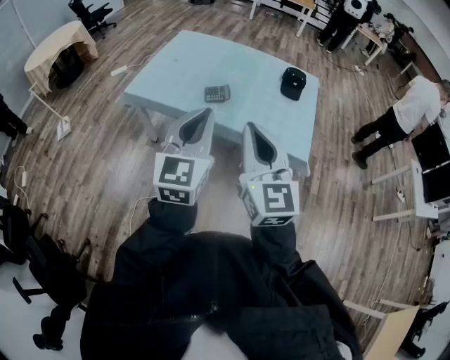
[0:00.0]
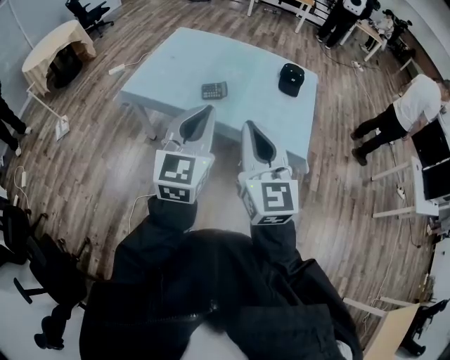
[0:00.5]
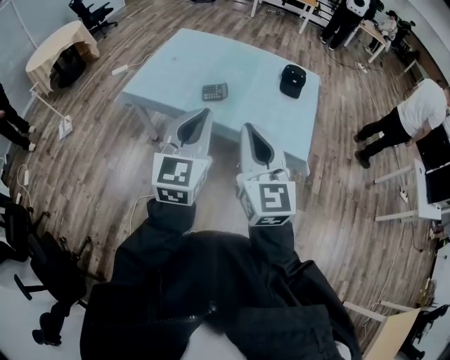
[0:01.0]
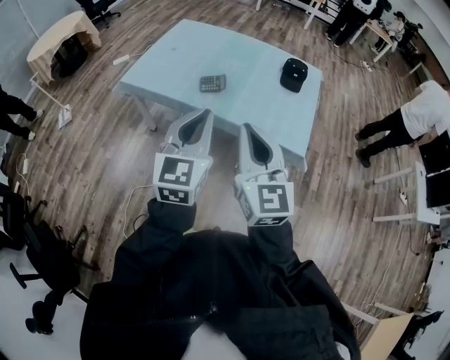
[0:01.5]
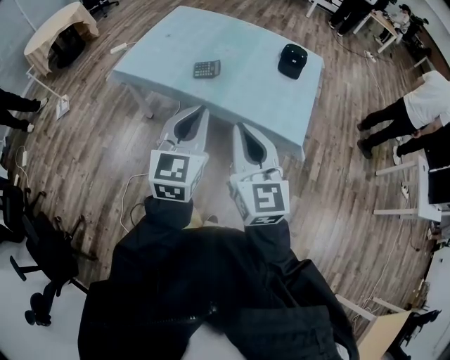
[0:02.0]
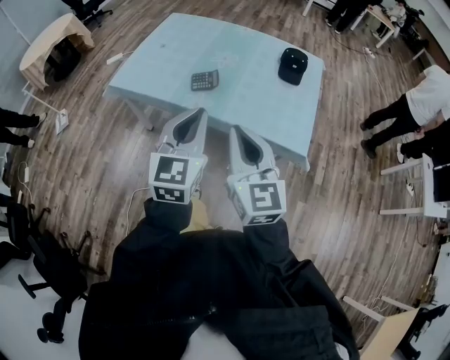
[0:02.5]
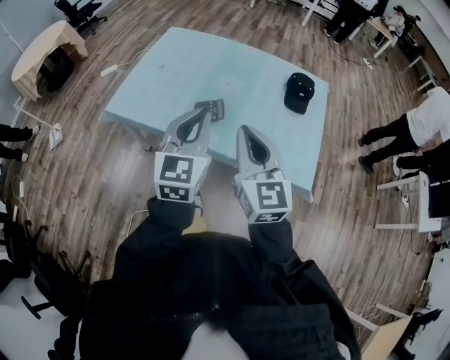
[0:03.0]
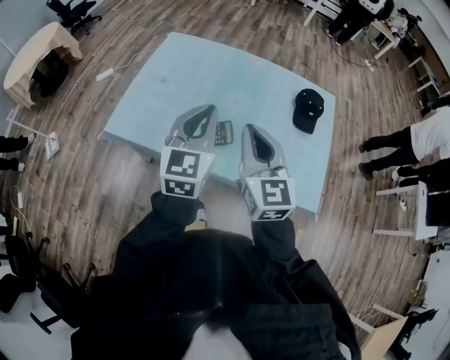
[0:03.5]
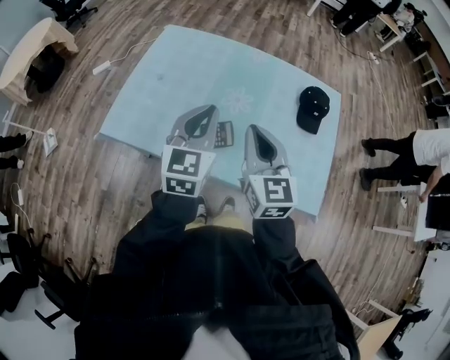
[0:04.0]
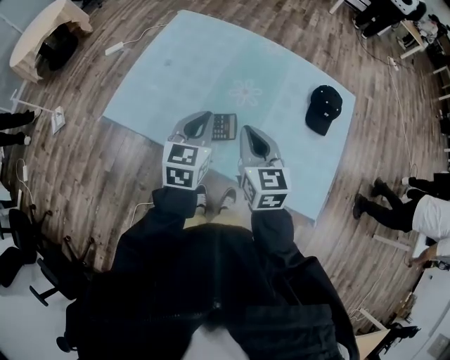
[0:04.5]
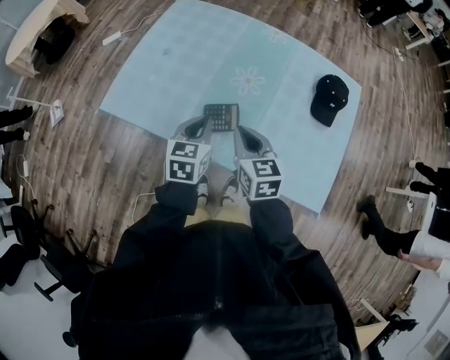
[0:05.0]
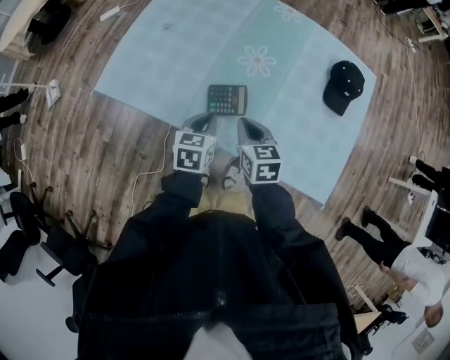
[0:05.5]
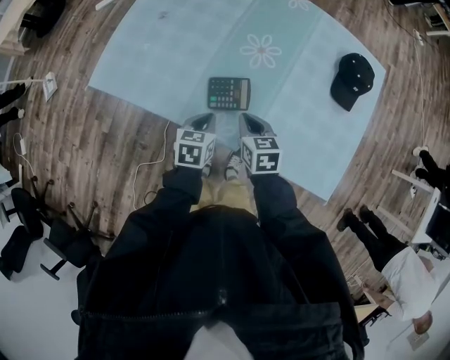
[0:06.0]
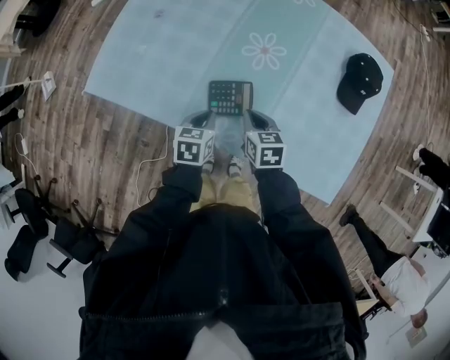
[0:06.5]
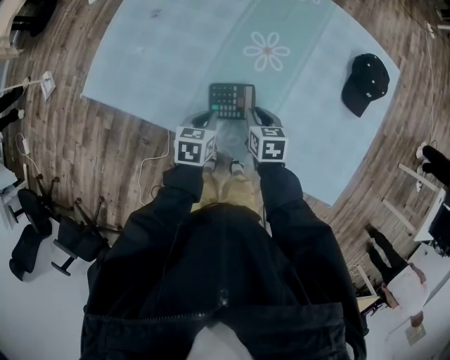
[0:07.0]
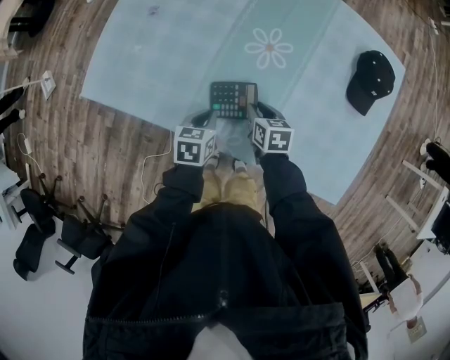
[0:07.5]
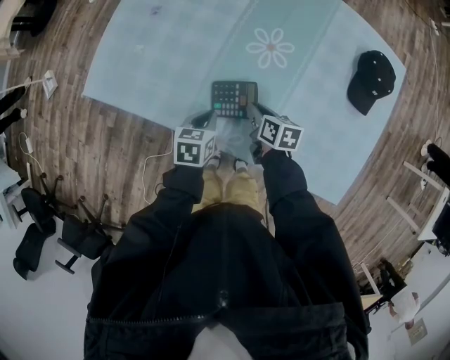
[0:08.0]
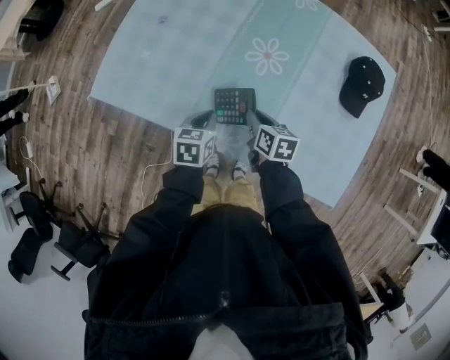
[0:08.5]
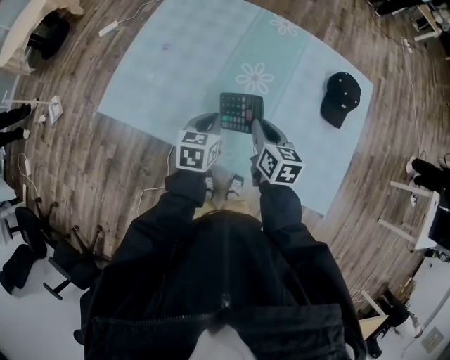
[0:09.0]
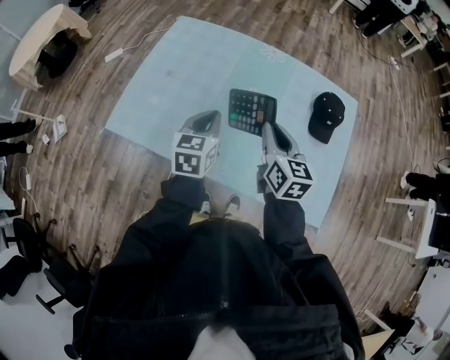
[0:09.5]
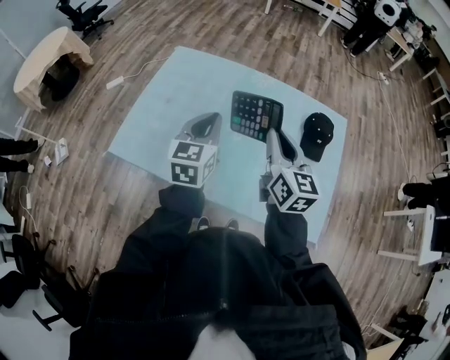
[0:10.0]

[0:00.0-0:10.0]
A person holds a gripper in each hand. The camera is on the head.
0:00.0 to 0:02.0: The grippers both shift to the right and downward by roughly 10 cm.
0:02.0 to 0:04.0: The pair of grippers is taken forward, about 40 cm.
0:04.0 to 0:06.0: Both grippers travel together downward, some 30 cm. The right gripper angles its fingers downward, by roughly 30 degrees. Meanwhile the left gripper tips its fingers downward by roughly 40 degrees.
0:06.0 to 0:08.0: The left gripper moves some 5 cm; the right gripper goes some 10 cm downward and forward, and swivels some 30 degrees.
0:08.0 to 0:10.0: Both grippers travel together upward, about 40 cm. The right gripper points its fingers about 40 degrees further upward. The left gripper angles its fingers upward, by about 40 degrees.

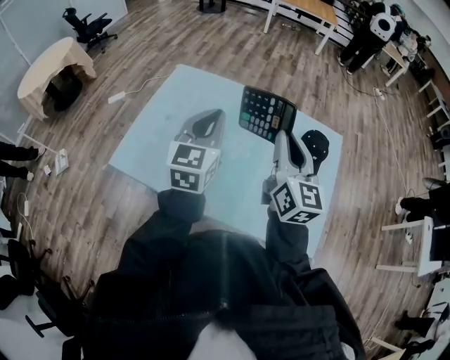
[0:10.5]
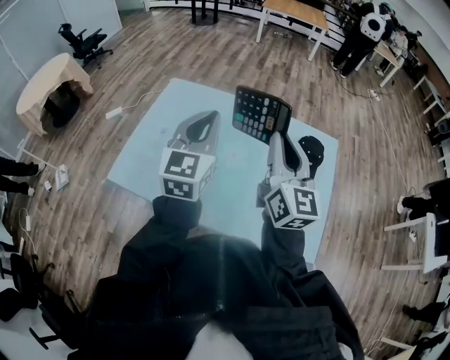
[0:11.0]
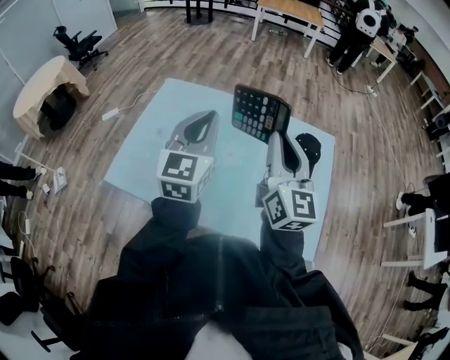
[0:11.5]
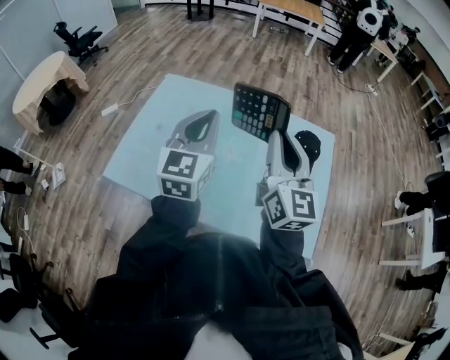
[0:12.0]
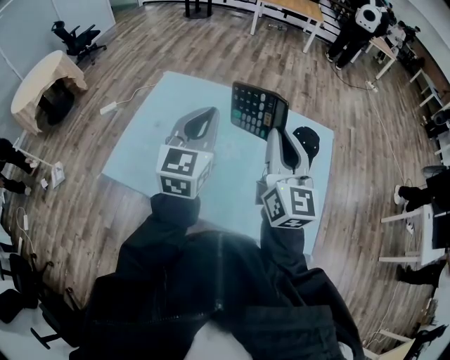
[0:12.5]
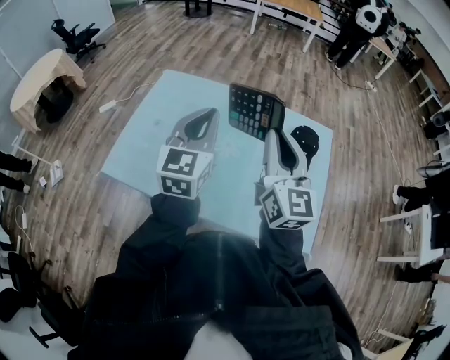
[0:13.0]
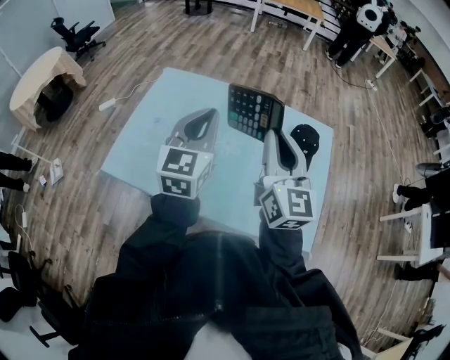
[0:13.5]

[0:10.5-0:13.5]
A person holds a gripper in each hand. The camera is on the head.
0:10.5 to 0:13.5: The grippers stay close to where they were, moving slightly.

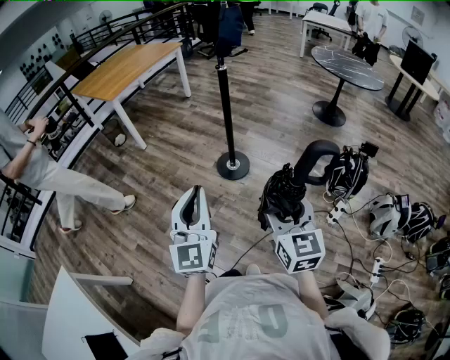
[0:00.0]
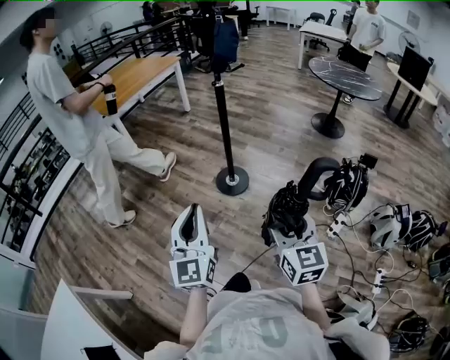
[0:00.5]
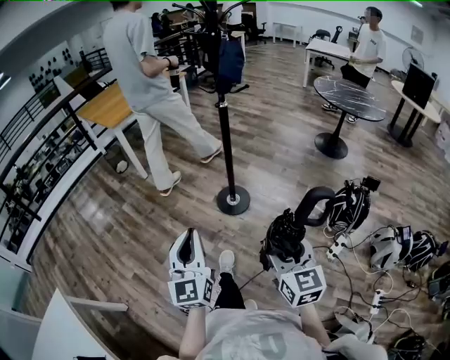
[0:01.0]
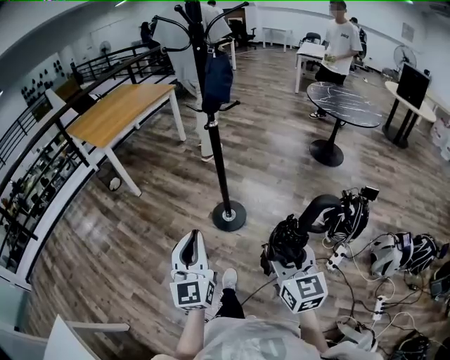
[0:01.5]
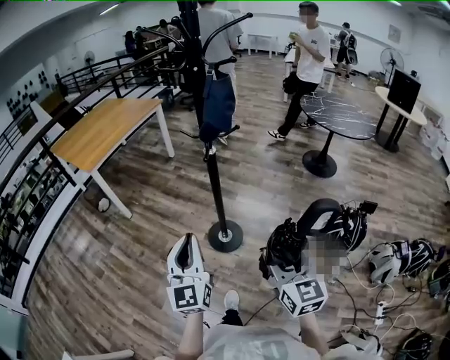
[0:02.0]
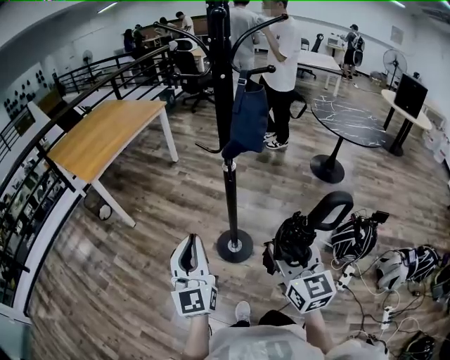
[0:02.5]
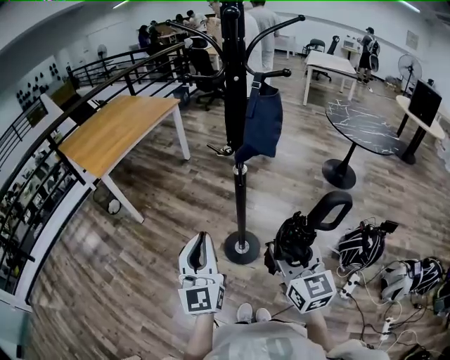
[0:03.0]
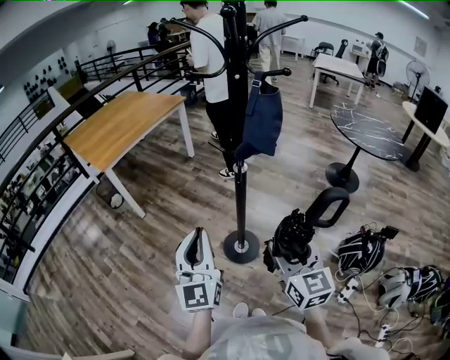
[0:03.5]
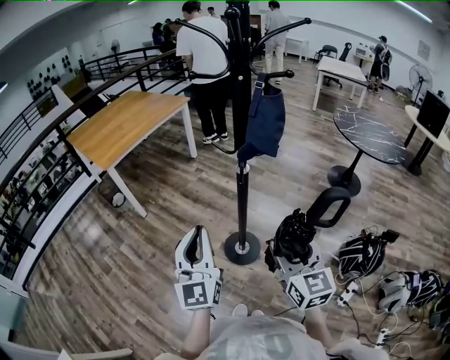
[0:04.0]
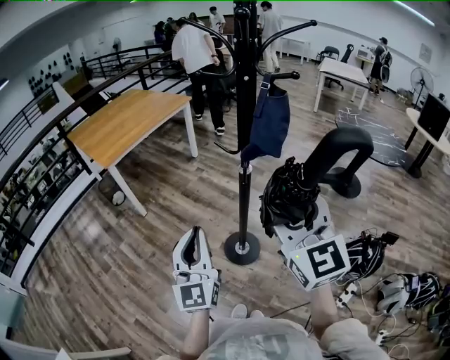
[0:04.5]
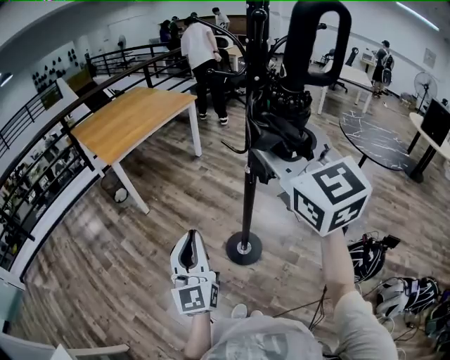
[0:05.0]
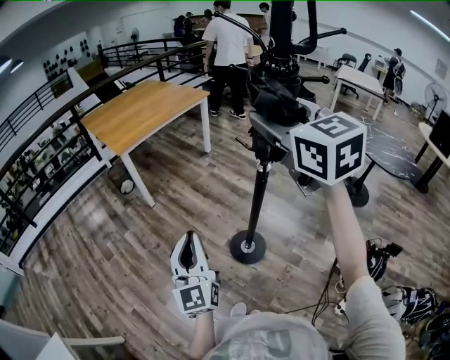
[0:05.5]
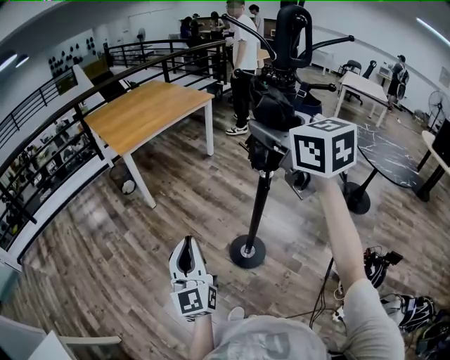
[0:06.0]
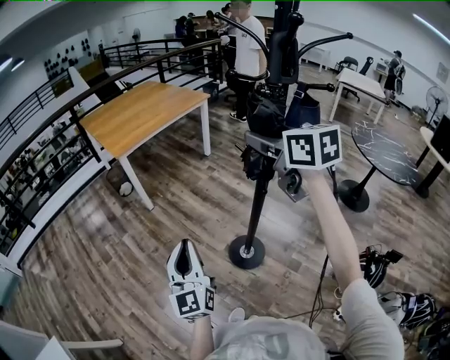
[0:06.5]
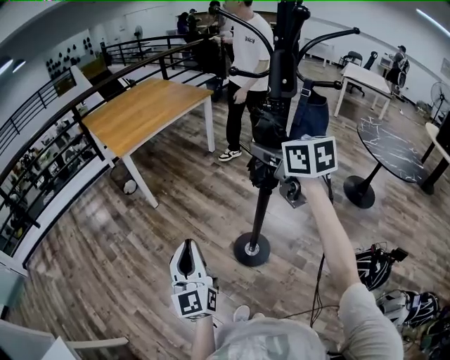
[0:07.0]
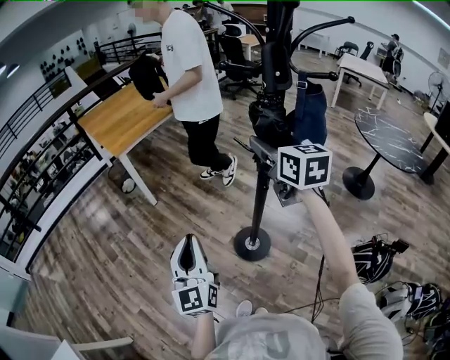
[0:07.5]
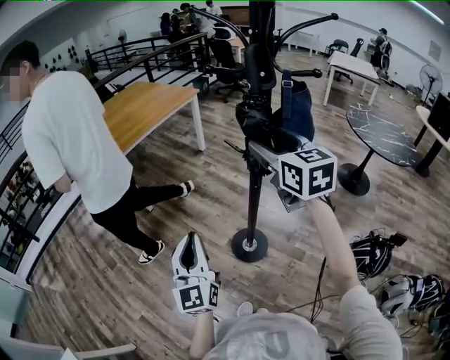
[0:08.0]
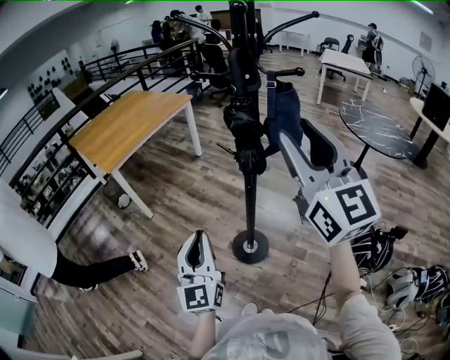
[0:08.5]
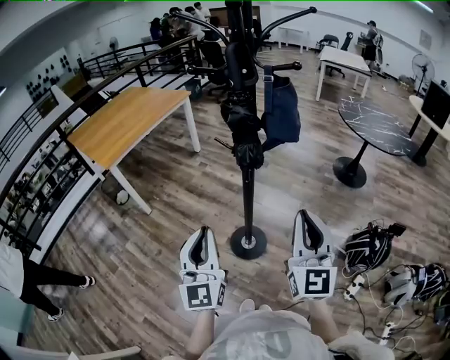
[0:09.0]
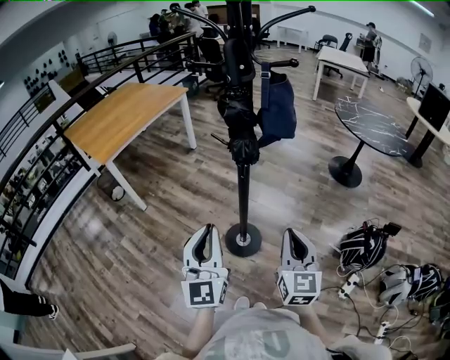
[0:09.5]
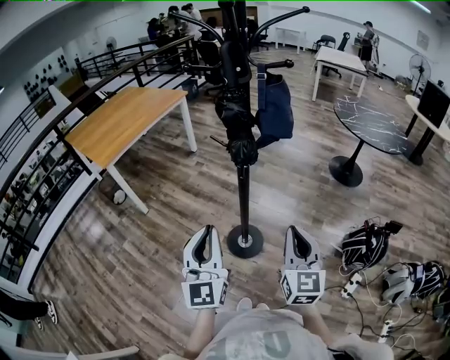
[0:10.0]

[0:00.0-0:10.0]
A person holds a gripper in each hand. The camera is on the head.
0:00.0 to 0:02.0: Both grippers move forward, roughly 25 cm.
0:02.0 to 0:04.0: The grippers both shift forward by about 15 cm.
0:04.0 to 0:06.0: The right gripper shifts approximately 30 cm upward and forward, and changes its angle by some 30 degrees; the left gripper moves to the left, some 10 cm.
0:06.0 to 0:08.0: The left gripper shifts by roughly 5 cm, while the right gripper heads downward and to the right, covering approximately 10 cm.
0:08.0 to 0:10.0: The left gripper goes roughly 10 cm to the right. Meanwhile the right gripper moves backward, downward and to the right, roughly 30 cm, turns by some 30 degrees, and closes.

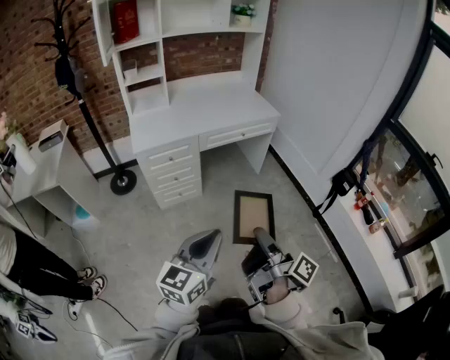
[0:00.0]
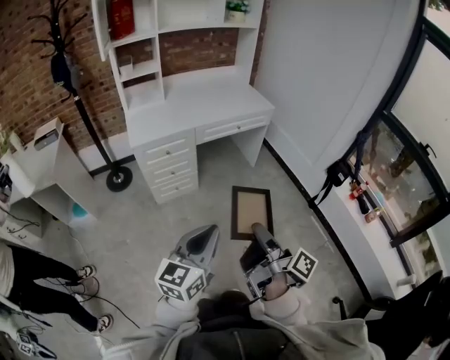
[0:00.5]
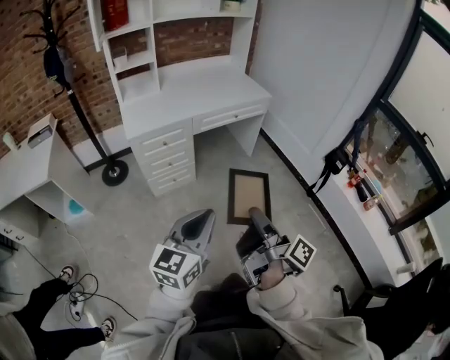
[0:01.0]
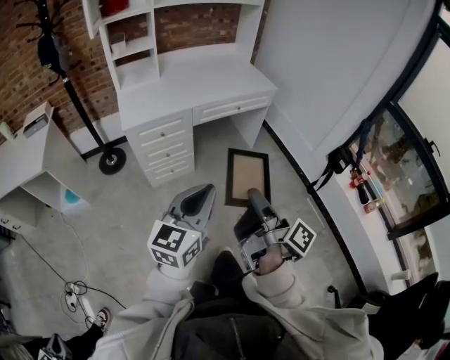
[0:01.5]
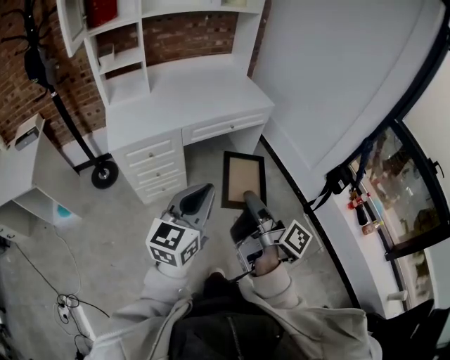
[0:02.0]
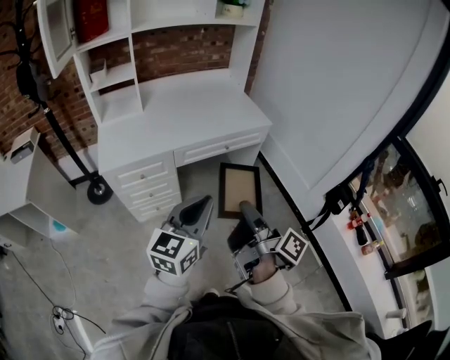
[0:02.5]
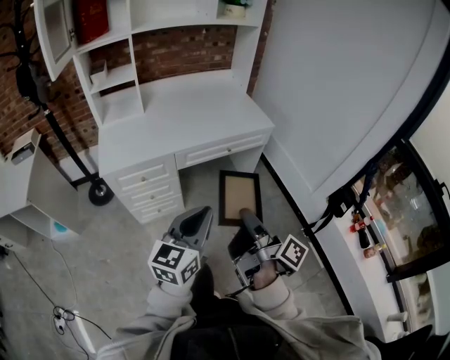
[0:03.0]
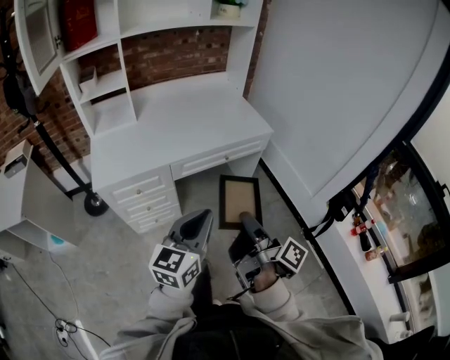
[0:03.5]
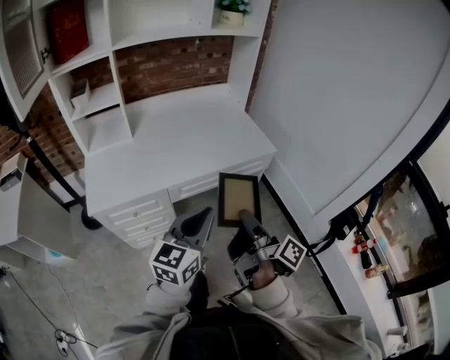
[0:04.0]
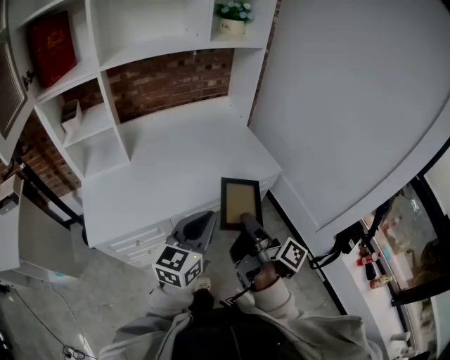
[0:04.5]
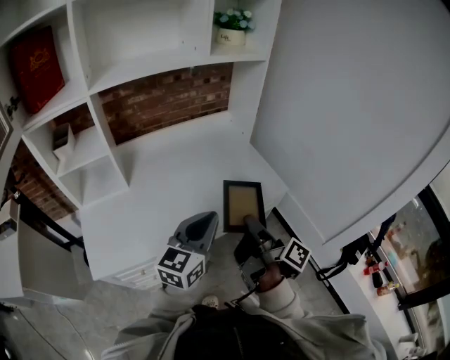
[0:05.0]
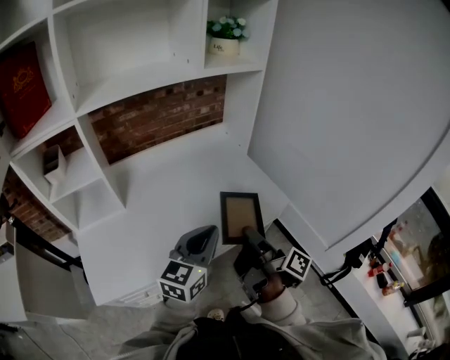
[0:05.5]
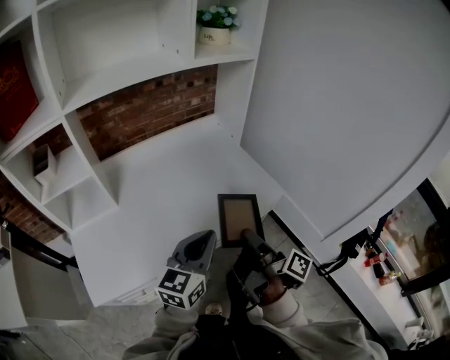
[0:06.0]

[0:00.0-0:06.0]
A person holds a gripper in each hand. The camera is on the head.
0:00.0 to 0:02.0: The left gripper changes place by roughly 20 cm.
0:02.0 to 0:04.0: The left gripper changes place by about 30 cm.
0:04.0 to 0:06.0: The left gripper changes place by roughly 25 cm.
